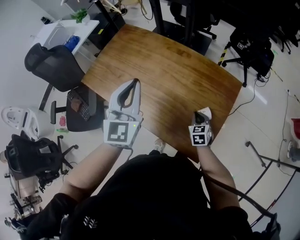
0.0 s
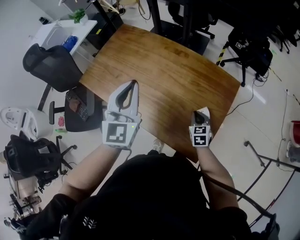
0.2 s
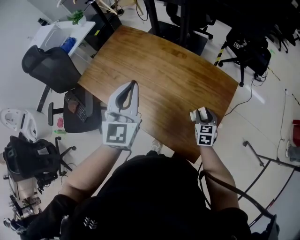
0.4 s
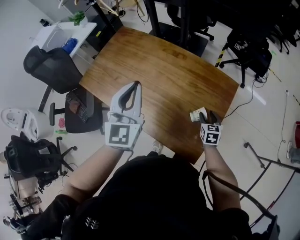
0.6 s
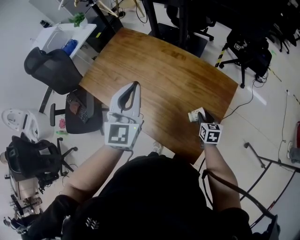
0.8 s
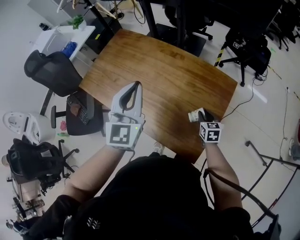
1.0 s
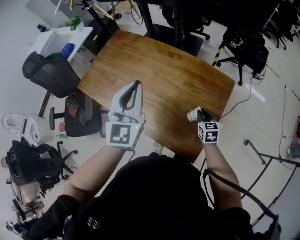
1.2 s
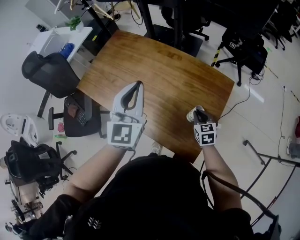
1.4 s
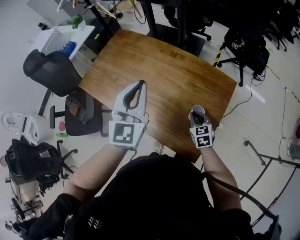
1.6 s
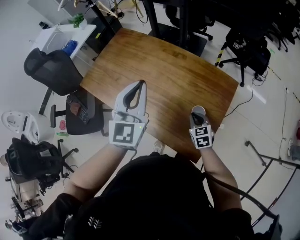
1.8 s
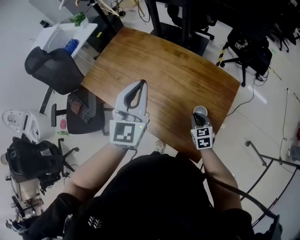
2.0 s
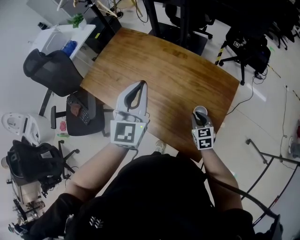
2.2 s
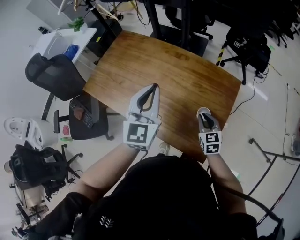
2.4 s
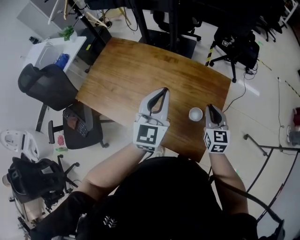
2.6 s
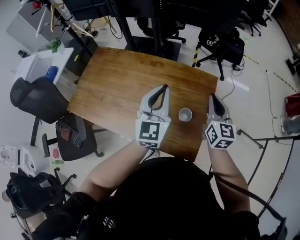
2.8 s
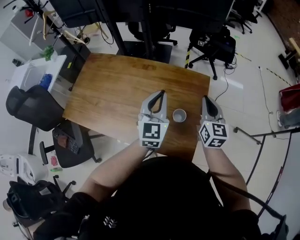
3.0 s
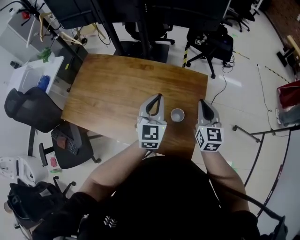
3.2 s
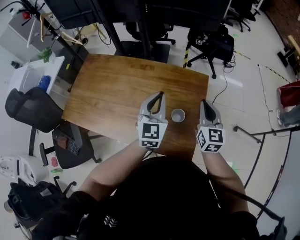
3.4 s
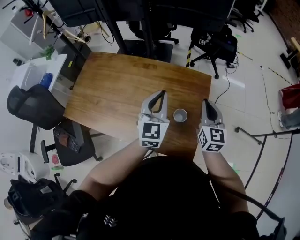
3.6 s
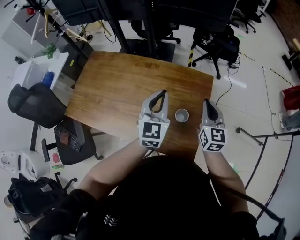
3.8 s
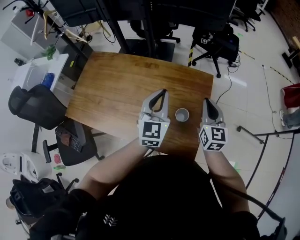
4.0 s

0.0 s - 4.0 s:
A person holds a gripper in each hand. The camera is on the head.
0.0 s - 1.4 s: The right gripper opens, then closes once more.
1.4 s - 2.6 s: The right gripper moves upward, roughly 15 cm, and swivels some 20 degrees. The left gripper shifts some 5 cm to the right.
2.6 s - 4.0 s: The right gripper goes some 5 cm upward. The left gripper heads to the right, covering about 5 cm.

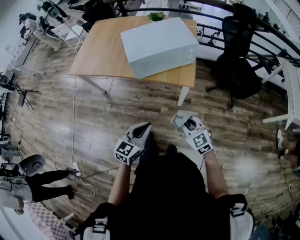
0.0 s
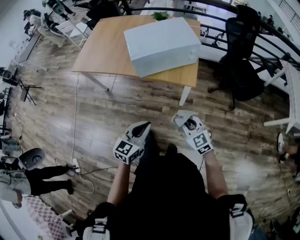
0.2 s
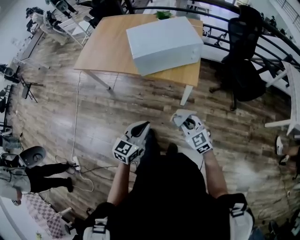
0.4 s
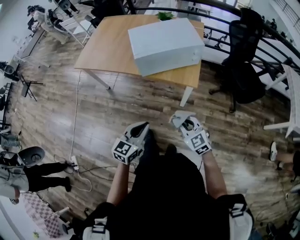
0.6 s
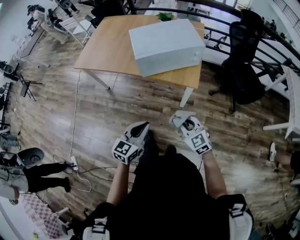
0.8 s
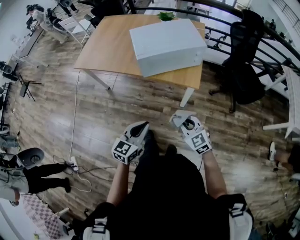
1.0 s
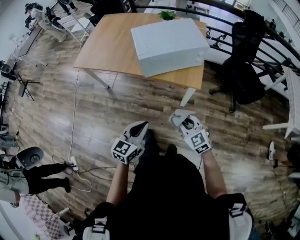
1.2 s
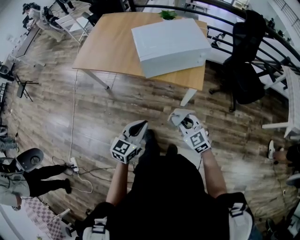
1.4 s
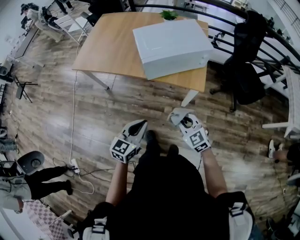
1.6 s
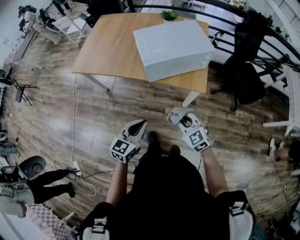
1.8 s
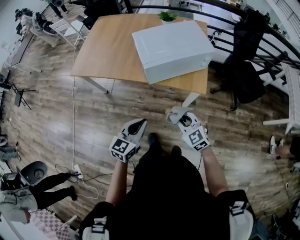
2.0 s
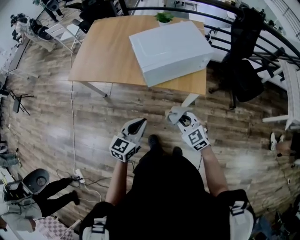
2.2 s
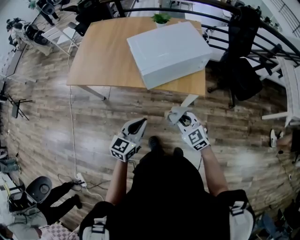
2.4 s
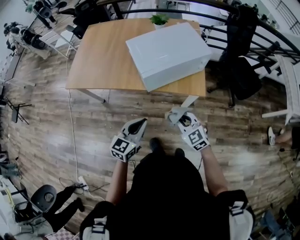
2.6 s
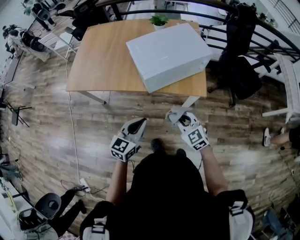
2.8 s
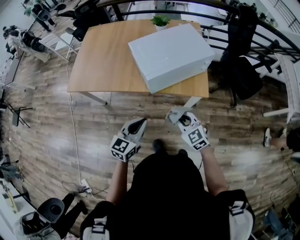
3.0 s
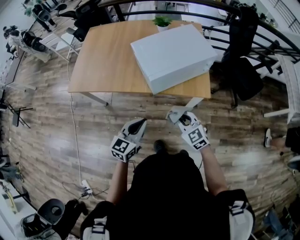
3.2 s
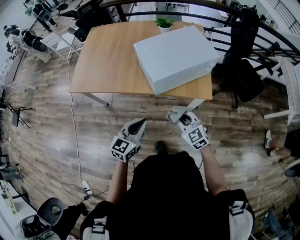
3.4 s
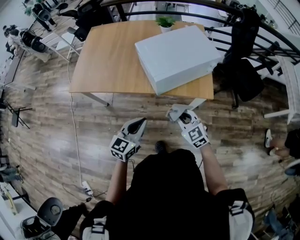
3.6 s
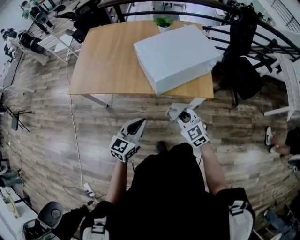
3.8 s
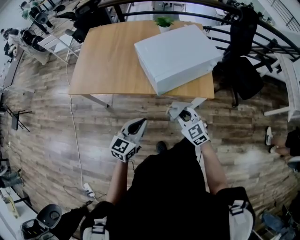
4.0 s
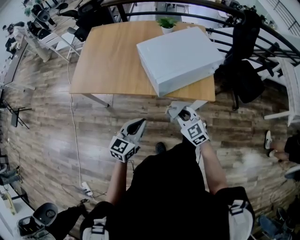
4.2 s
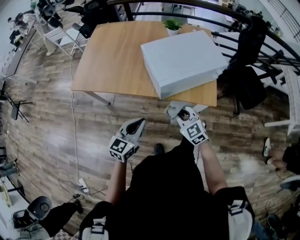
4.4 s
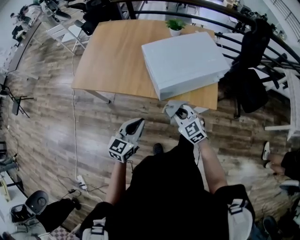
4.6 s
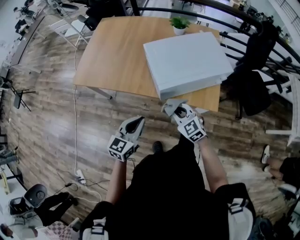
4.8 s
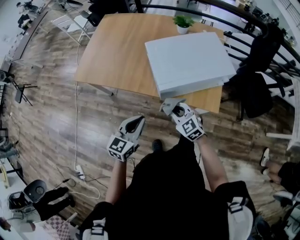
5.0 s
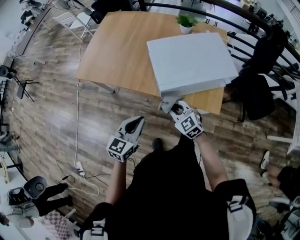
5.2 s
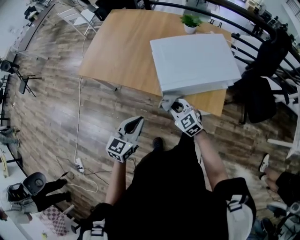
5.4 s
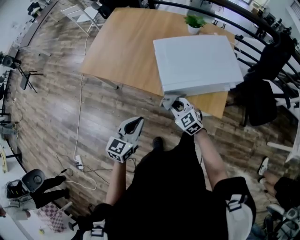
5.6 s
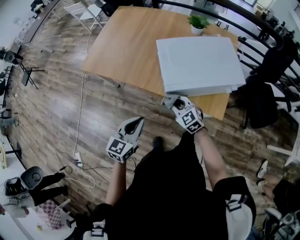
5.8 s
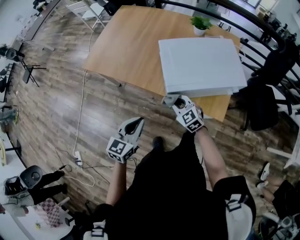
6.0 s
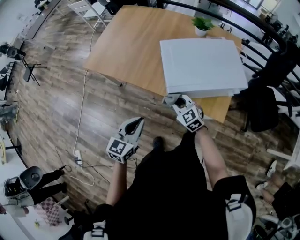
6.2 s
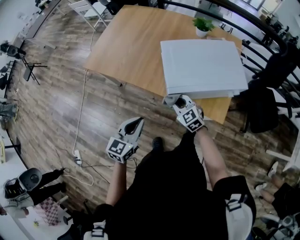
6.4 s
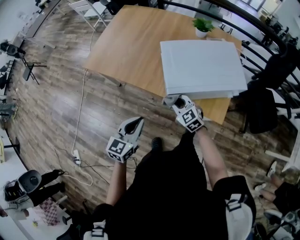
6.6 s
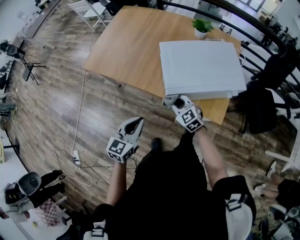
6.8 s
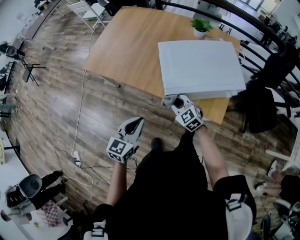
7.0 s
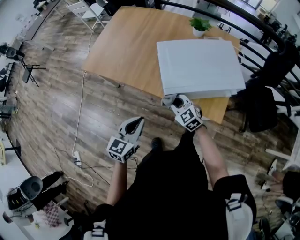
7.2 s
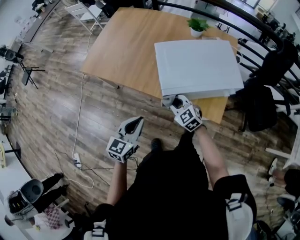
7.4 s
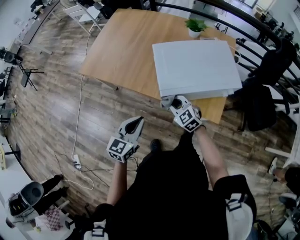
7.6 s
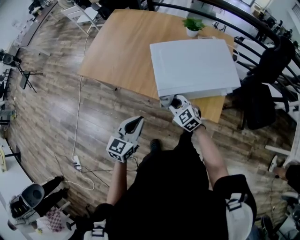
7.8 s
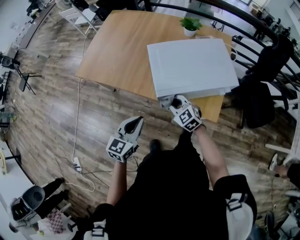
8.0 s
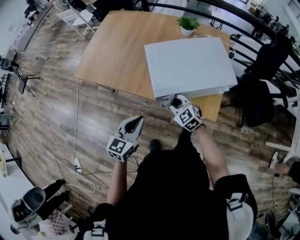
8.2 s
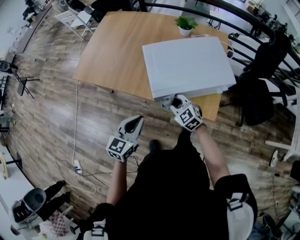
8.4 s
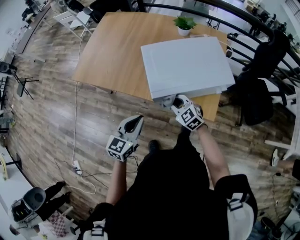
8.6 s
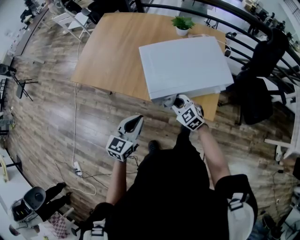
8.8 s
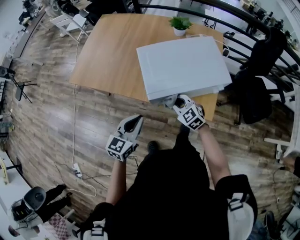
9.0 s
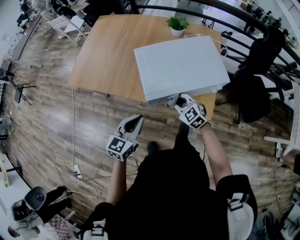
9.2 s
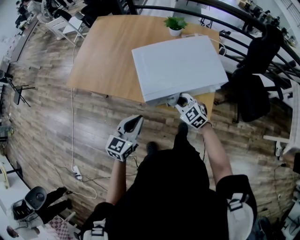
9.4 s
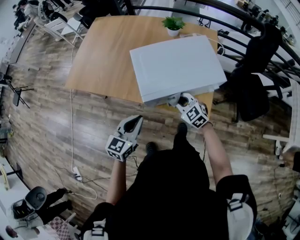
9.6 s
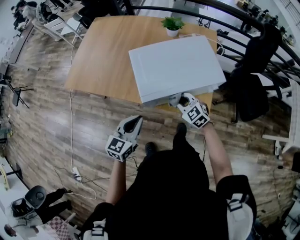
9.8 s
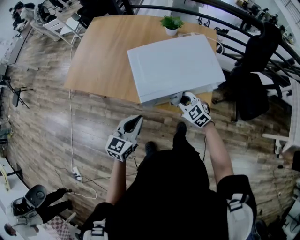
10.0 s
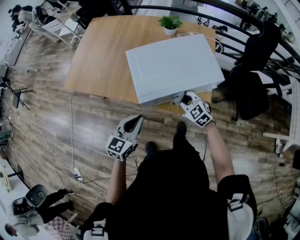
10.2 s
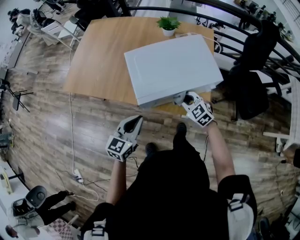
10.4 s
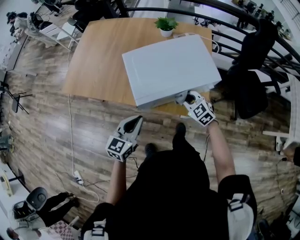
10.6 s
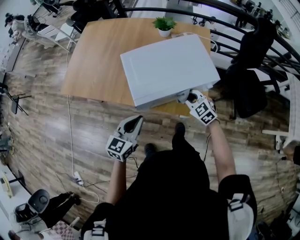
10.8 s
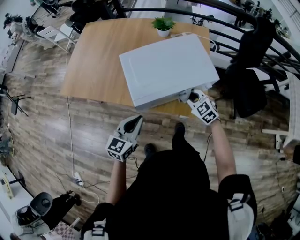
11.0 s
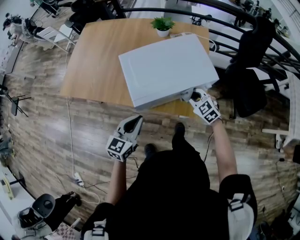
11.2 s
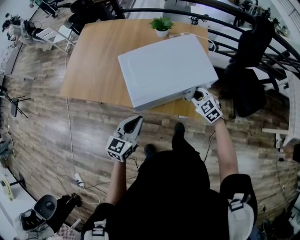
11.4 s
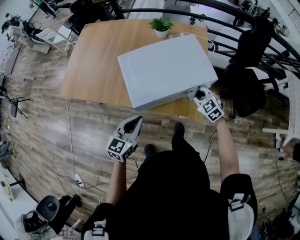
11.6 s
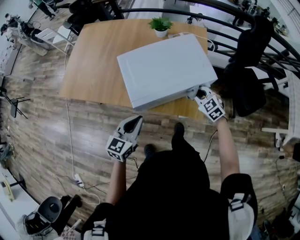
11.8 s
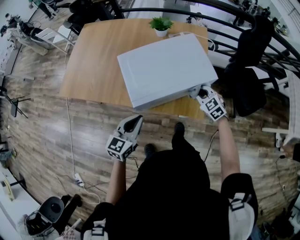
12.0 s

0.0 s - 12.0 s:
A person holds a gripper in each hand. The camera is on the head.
0.0 s - 1.6 s: Both grippers travel together to the left and forward, about 10 cm.
1.6 s - 3.0 s: The two grippers go approximately 10 cm forward and to the left.
3.0 s - 4.4 s: The left gripper shifts about 5 cm to the left, while the right gripper shifts roughly 10 cm forward and to the left.
4.4 s - 6.0 s: The right gripper heads forward, covering about 10 cm.
6.0 s - 7.6 s: The grippers make only small movements.
7.6 s - 9.0 s: The right gripper heads to the right, covering roughly 5 cm, while the left gripper moves roughly 5 cm.
9.0 s - 10.4 s: The right gripper heads to the right, covering roughly 10 cm.
10.4 s - 12.0 s: The right gripper moves to the right, roughly 10 cm.

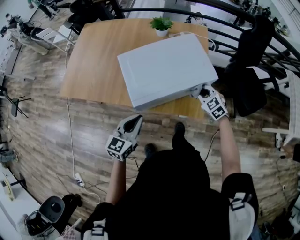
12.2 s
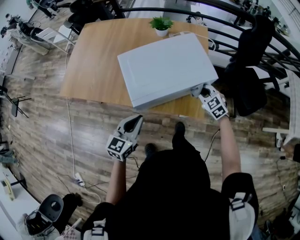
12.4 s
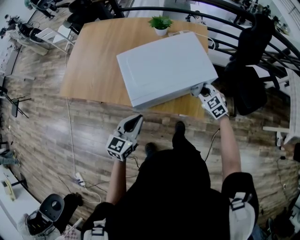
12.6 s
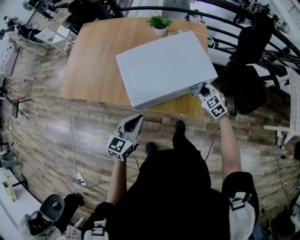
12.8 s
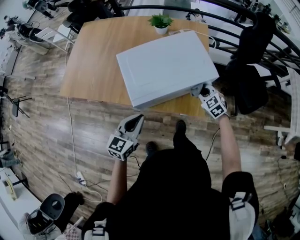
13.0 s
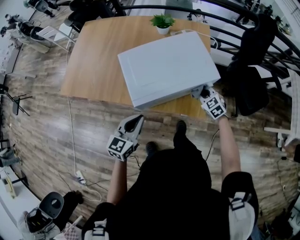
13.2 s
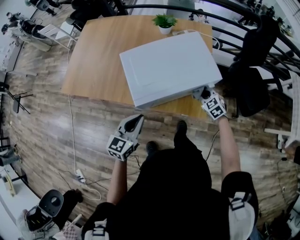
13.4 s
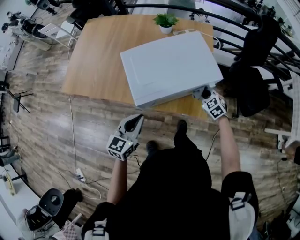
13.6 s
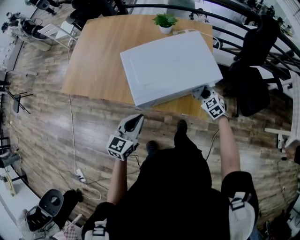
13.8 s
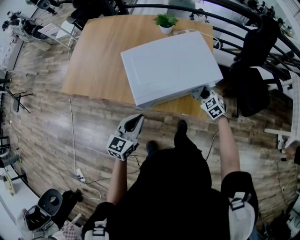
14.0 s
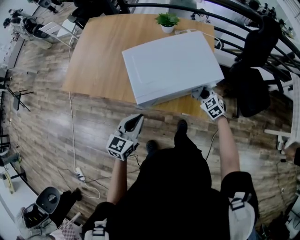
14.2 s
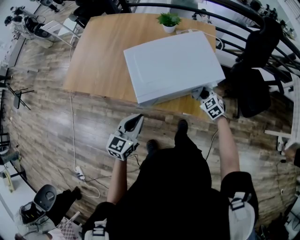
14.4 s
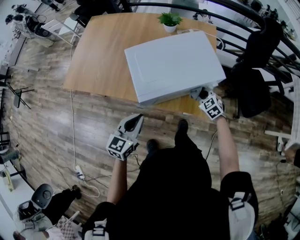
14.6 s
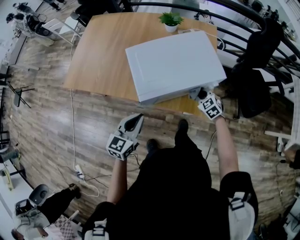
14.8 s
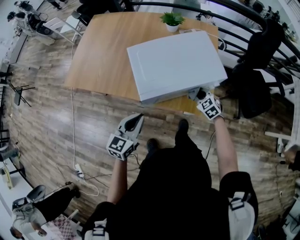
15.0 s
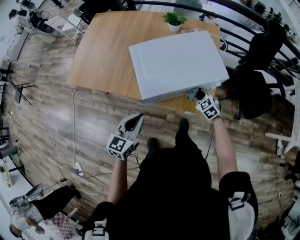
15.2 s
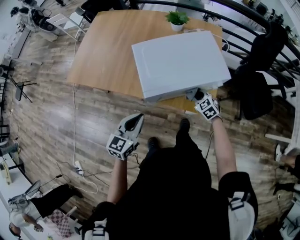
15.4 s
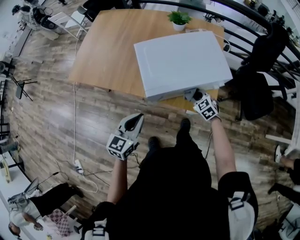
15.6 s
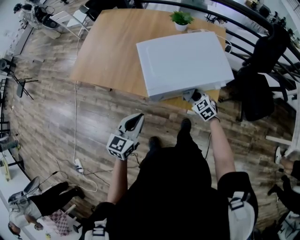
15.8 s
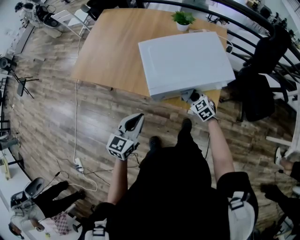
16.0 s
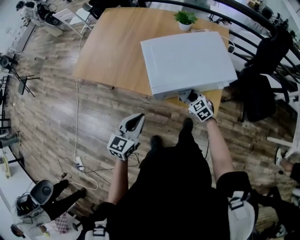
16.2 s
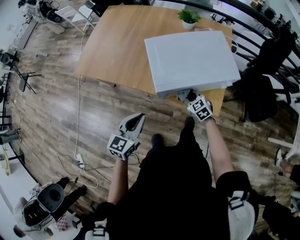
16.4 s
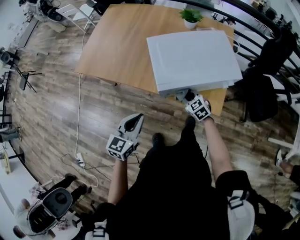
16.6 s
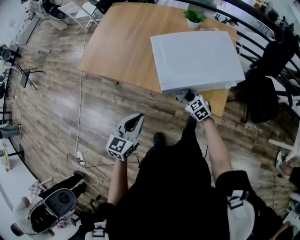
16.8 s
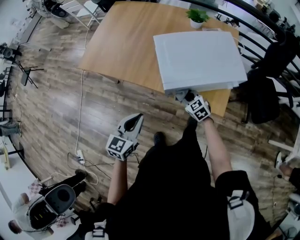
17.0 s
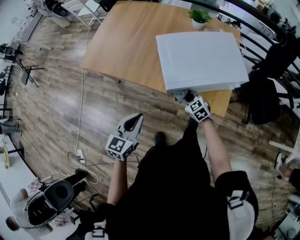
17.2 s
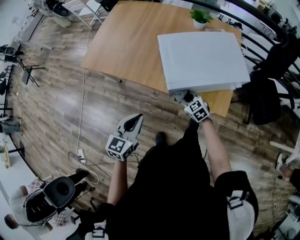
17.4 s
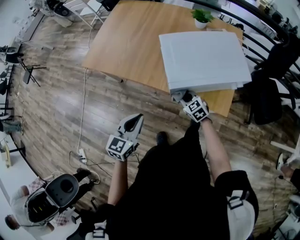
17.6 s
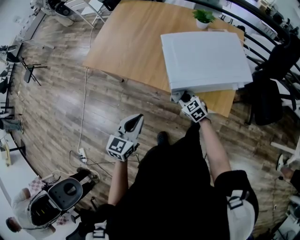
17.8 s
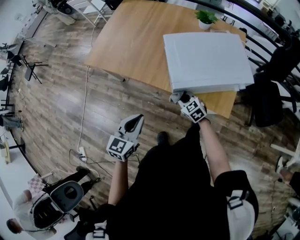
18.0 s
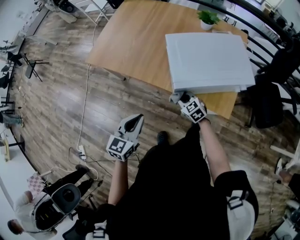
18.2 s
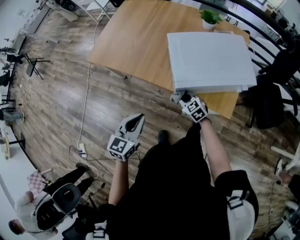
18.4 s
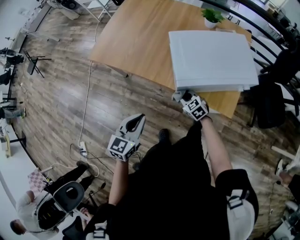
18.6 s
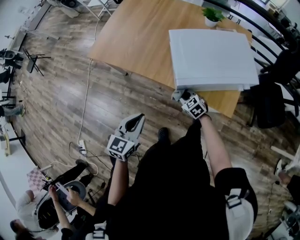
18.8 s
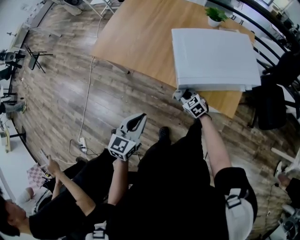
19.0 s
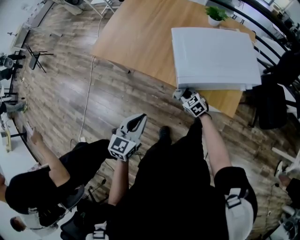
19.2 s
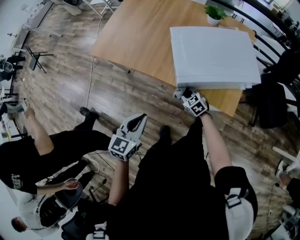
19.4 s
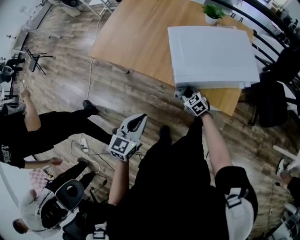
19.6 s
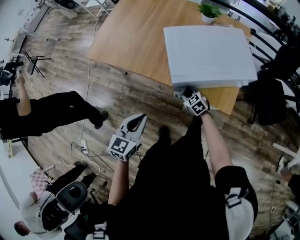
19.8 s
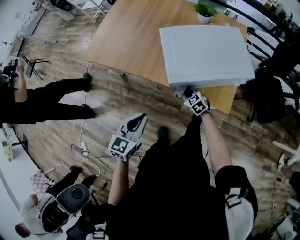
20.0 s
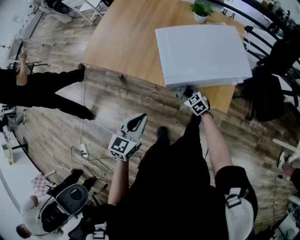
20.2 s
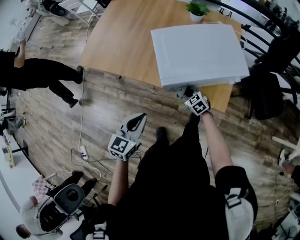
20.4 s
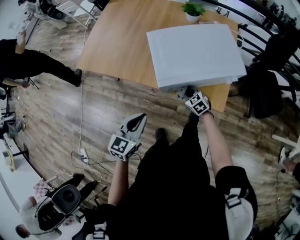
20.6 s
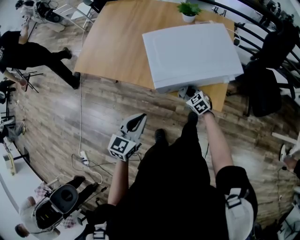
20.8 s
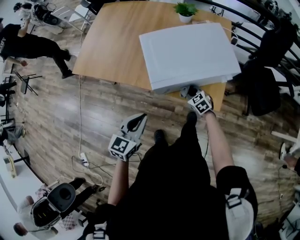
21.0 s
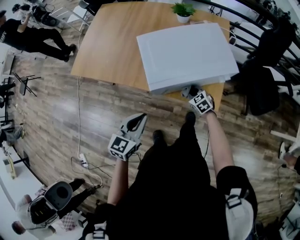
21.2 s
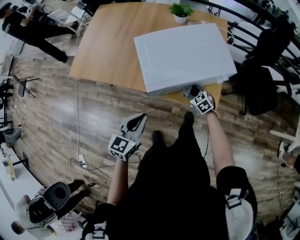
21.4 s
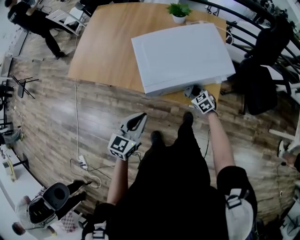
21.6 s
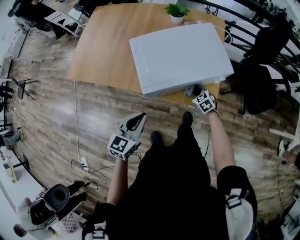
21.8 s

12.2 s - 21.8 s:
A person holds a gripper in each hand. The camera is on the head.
12.2 s - 13.8 s: The right gripper heads downward, covering about 5 cm.
13.8 s - 15.4 s: The right gripper is displaced to the left by about 10 cm.
15.4 s - 17.0 s: The right gripper goes about 15 cm to the left; the left gripper goes about 10 cm to the left.
17.0 s - 18.6 s: The right gripper is displaced to the left by roughly 10 cm.
18.6 s - 20.2 s: Both grippers move to the right, roughly 5 cm.
20.2 s - 21.8 s: The left gripper travels to the right by some 10 cm. The right gripper moves to the right, about 15 cm.
